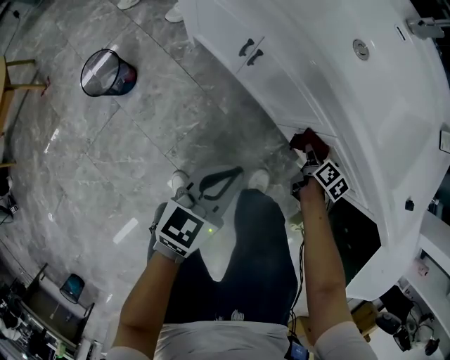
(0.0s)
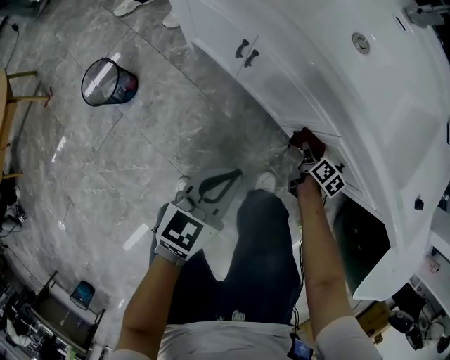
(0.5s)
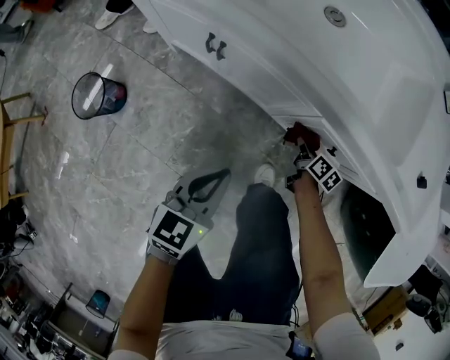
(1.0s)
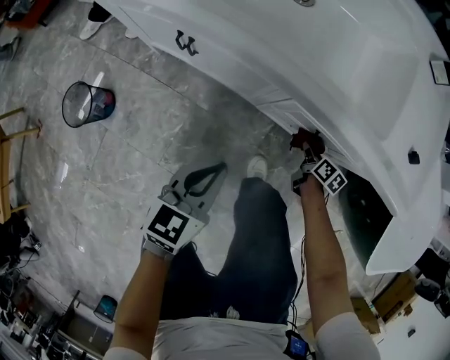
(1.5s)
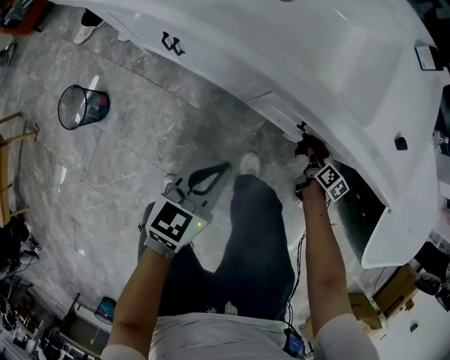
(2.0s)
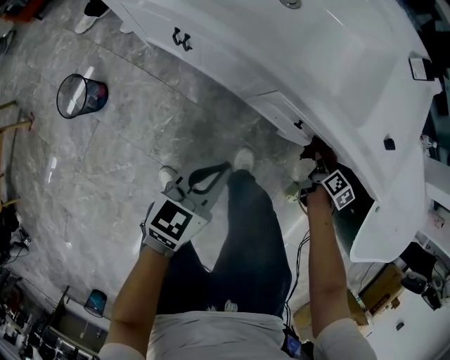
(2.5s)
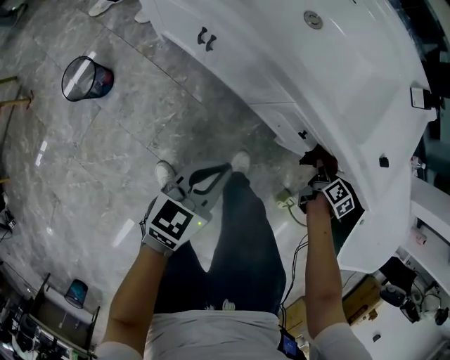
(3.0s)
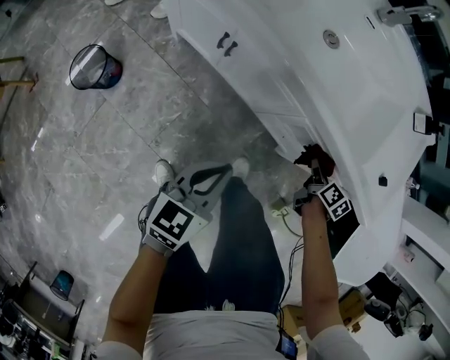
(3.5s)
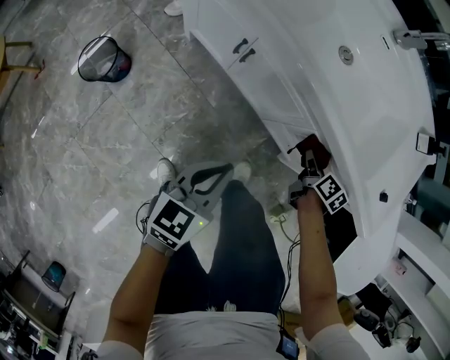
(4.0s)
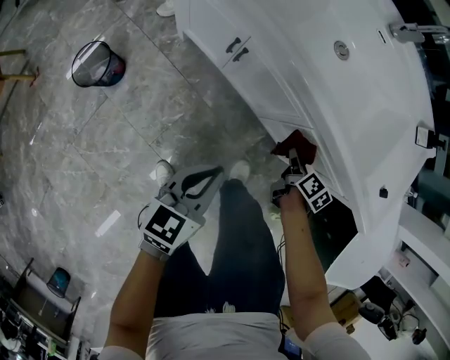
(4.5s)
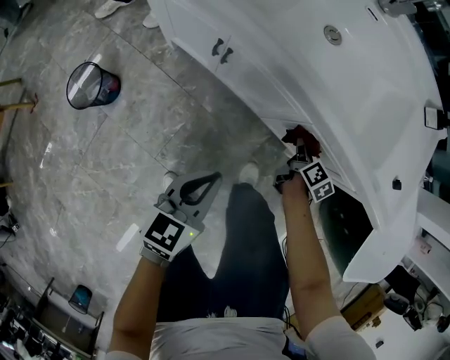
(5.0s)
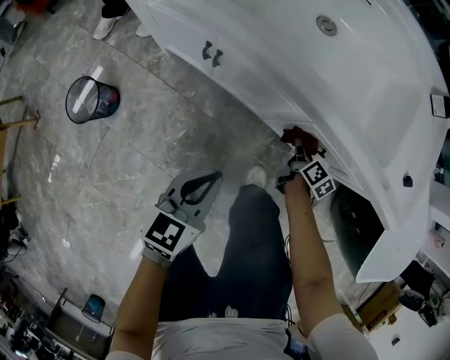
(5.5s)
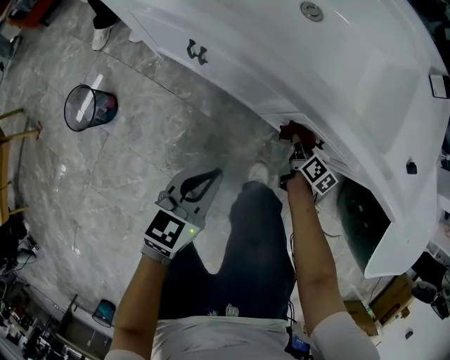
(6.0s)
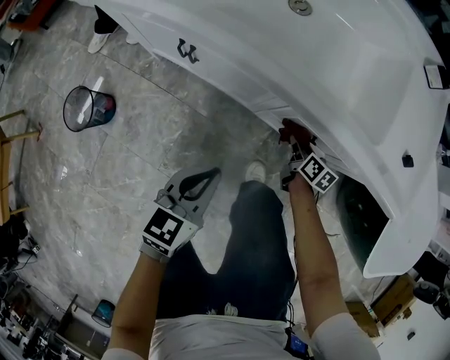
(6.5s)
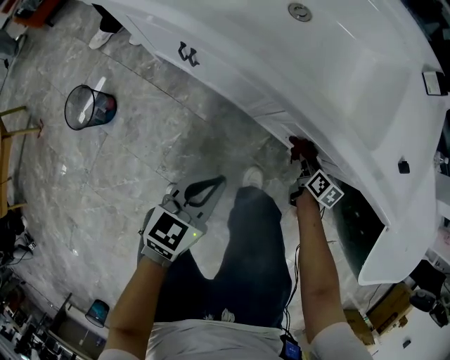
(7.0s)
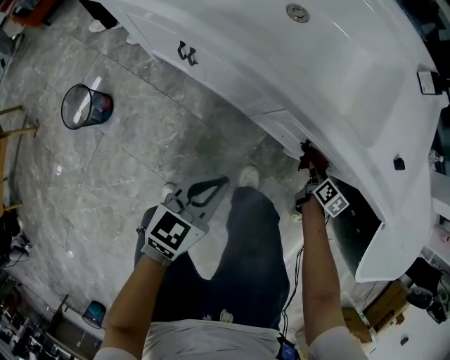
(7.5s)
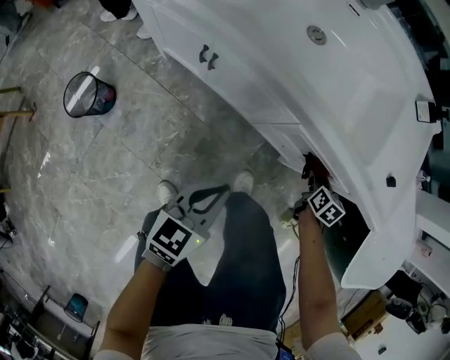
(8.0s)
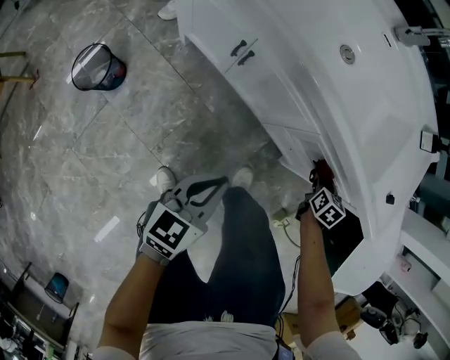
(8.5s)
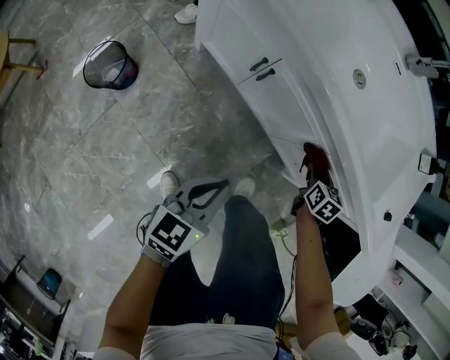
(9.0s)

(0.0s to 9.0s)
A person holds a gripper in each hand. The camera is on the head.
0.0s - 2.0s: The right gripper moves to the right, about 20 cm; the left gripper goes about 10 cm to the right.
2.0s - 4.5s: The left gripper is displaced to the left by roughly 10 cm, while the right gripper is displaced to the left and upward by some 25 cm.
4.5s - 7.0s: The left gripper travels to the right by approximately 10 cm, while the right gripper heads to the right and downward, covering about 15 cm.
7.0s - 9.0s: The right gripper goes some 20 cm to the left and upward, and changes its angle by about 30 degrees, while the left gripper goes about 15 cm to the left and backward.

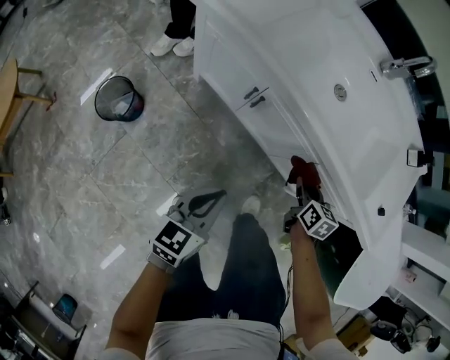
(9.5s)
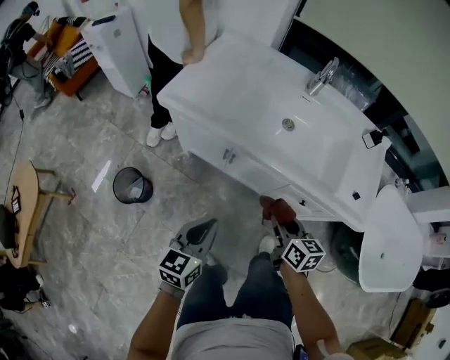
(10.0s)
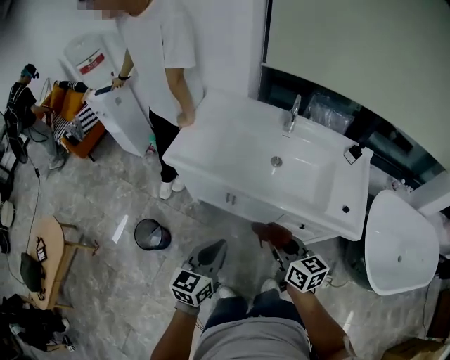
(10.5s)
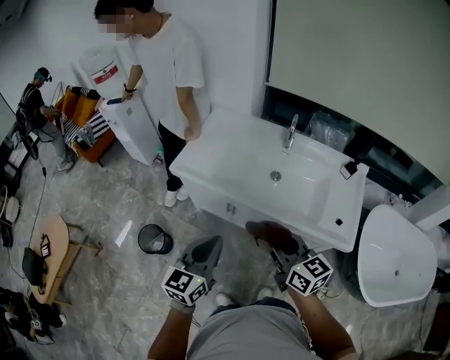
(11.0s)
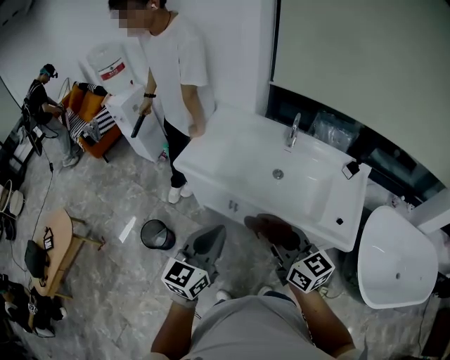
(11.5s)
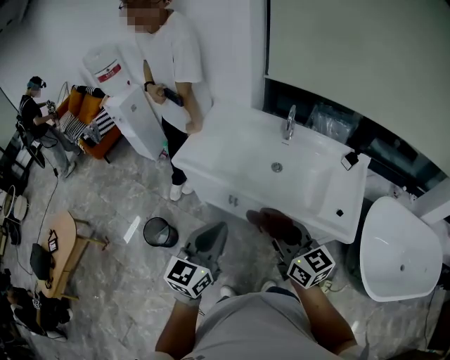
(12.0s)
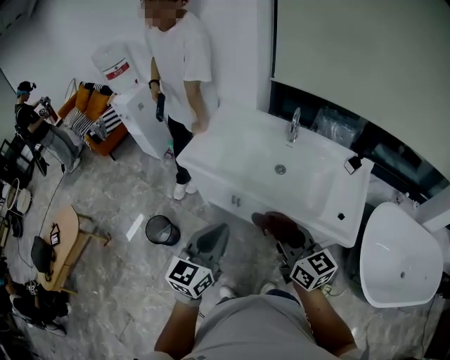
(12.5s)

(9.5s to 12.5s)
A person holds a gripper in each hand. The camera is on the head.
9.5s - 11.0s: Both grippers travel together upward, some 40 cm. The right gripper tilts its fingers roughly 30 degrees upward.
11.0s - 12.5s: The left gripper changes place by roughly 5 cm.

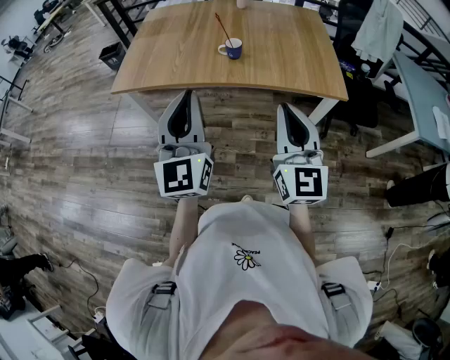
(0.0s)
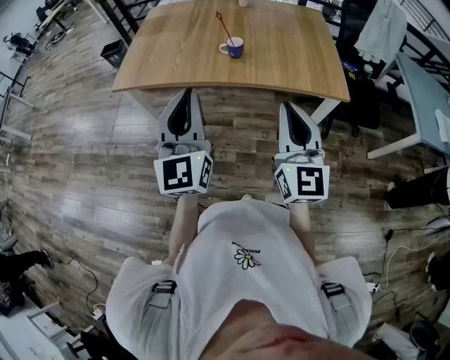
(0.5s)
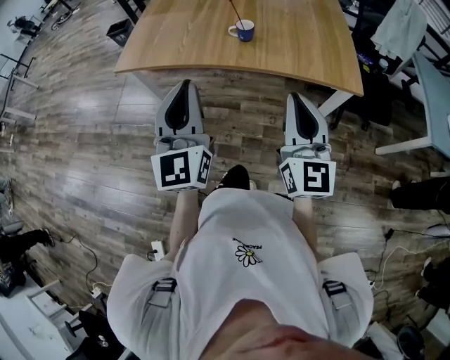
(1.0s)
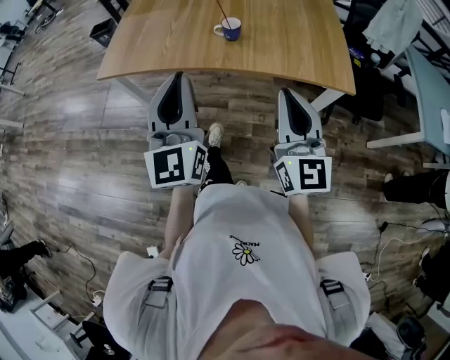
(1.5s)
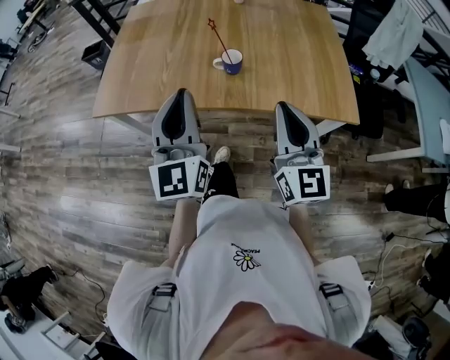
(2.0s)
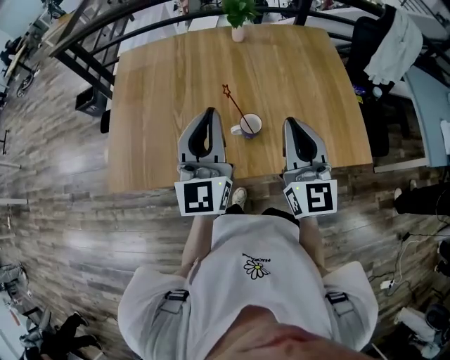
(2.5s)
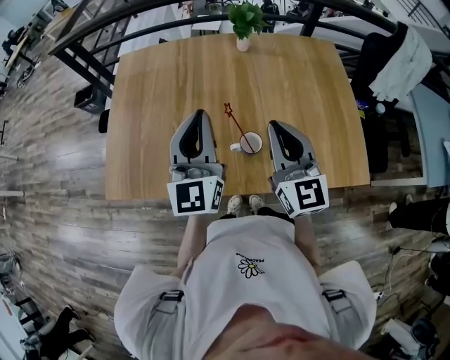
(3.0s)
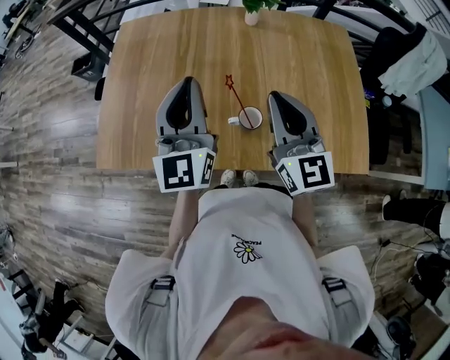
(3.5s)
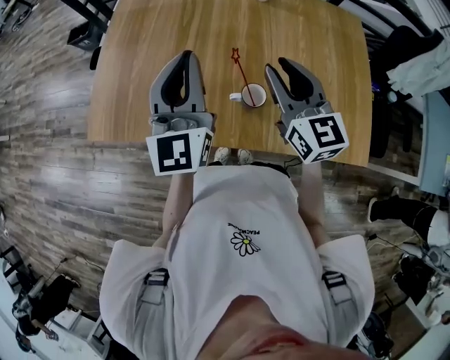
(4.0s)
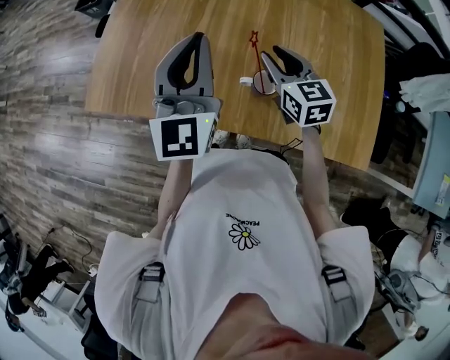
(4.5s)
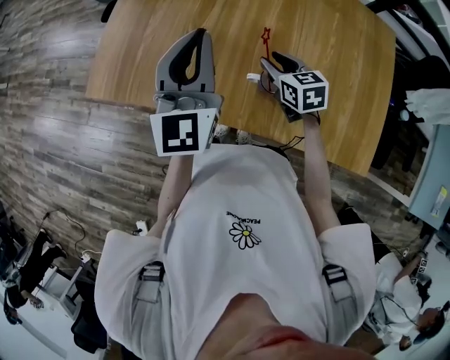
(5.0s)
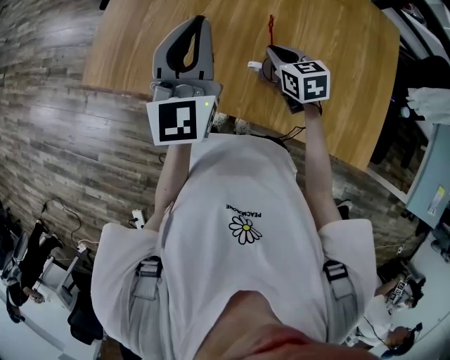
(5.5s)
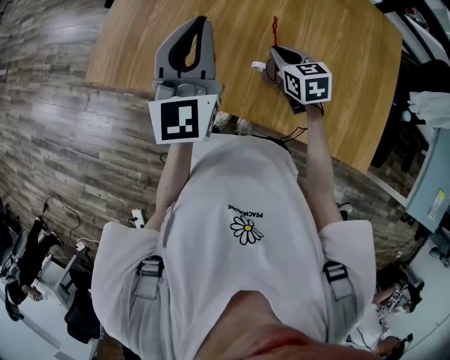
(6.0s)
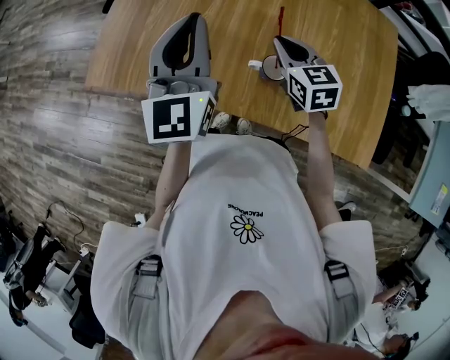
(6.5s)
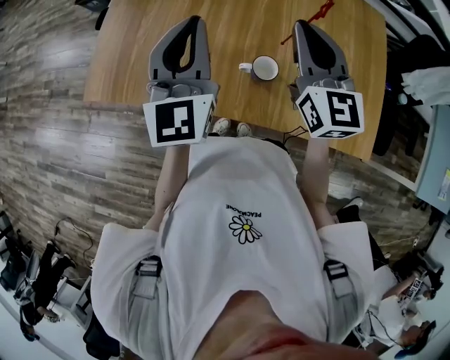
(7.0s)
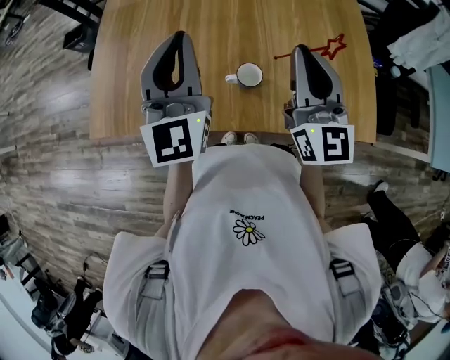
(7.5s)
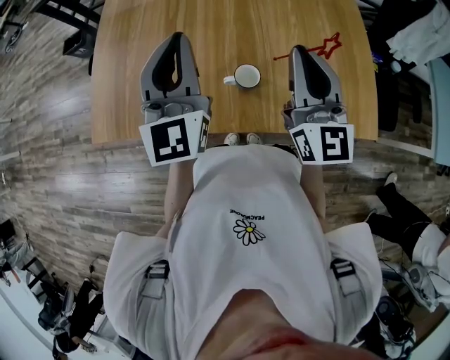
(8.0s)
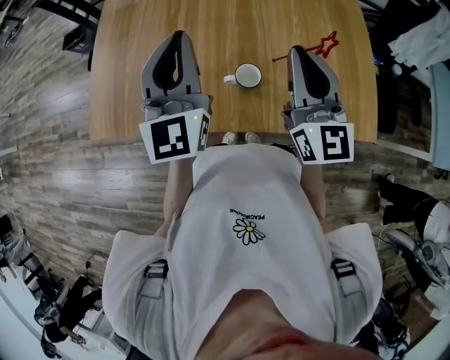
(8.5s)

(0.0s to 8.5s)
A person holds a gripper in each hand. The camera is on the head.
0.0s - 2.0s: The grippers both shift forward by about 20 cm.
2.0s - 4.0s: The two grippers go some 30 cm forward. The right gripper turns by approximately 20 degrees, and opens up.
4.0s - 6.5s: The right gripper travels downward by roughly 15 cm, turns by roughly 20 degrees, and closes its fingers.
6.5s - 8.5s: The left gripper is displaced to the right by about 10 cm; the right gripper travels upward, to the right and backward by approximately 20 cm, and angles its fingers upward, by approximately 40 degrees.

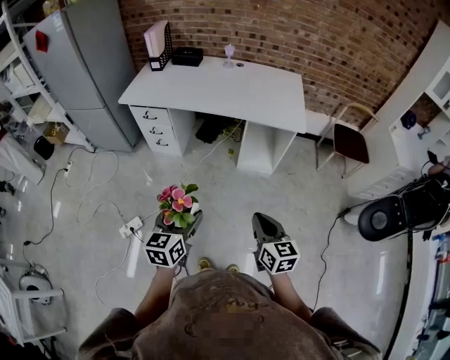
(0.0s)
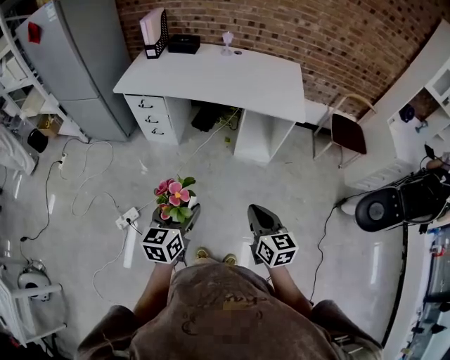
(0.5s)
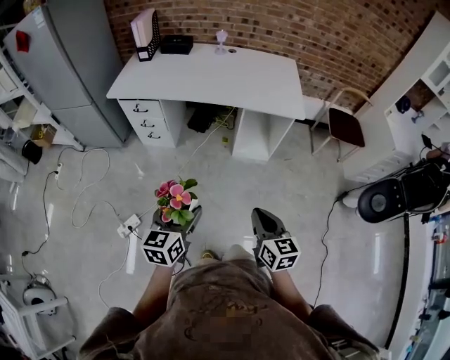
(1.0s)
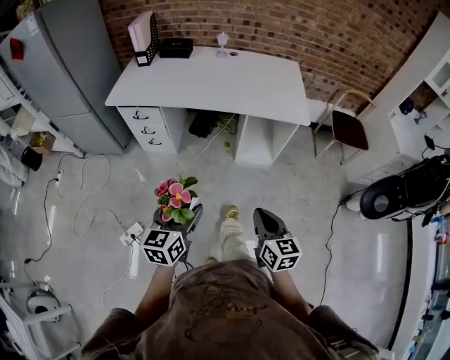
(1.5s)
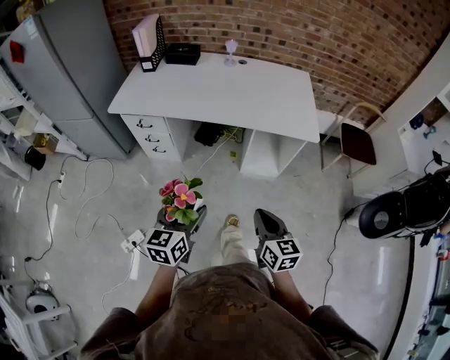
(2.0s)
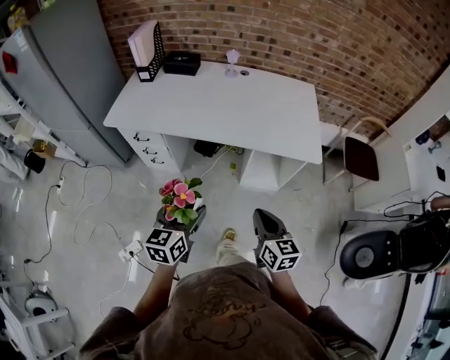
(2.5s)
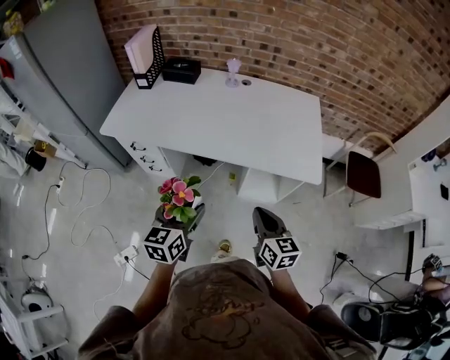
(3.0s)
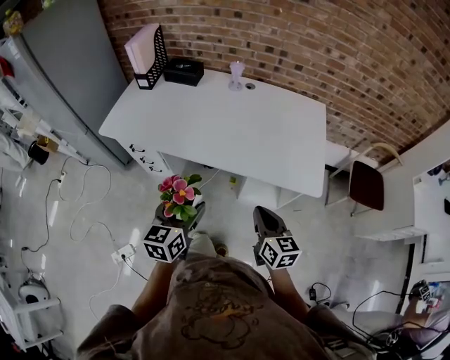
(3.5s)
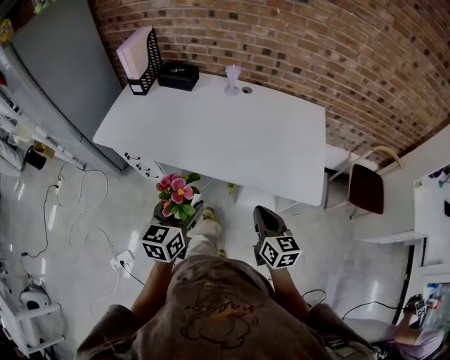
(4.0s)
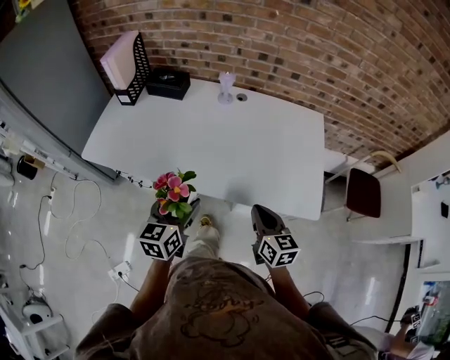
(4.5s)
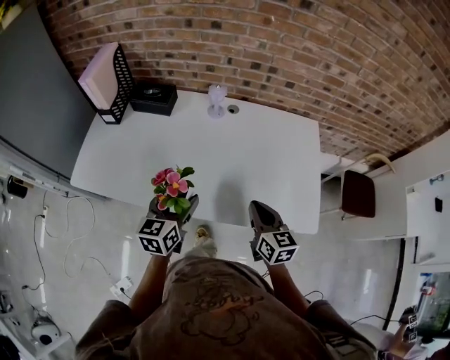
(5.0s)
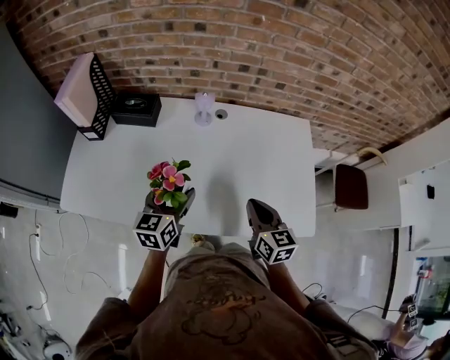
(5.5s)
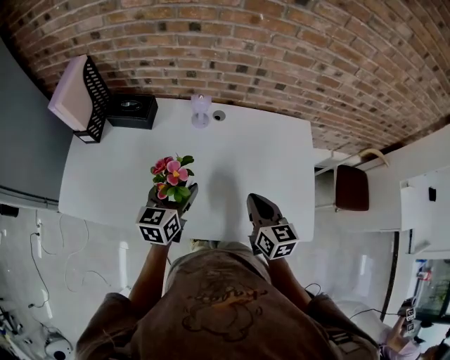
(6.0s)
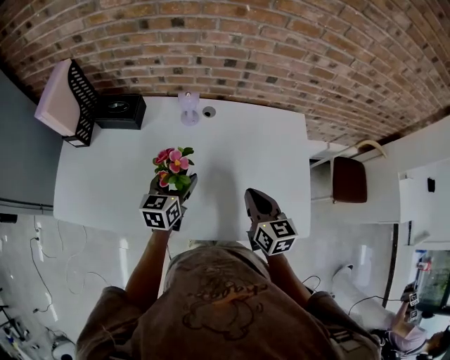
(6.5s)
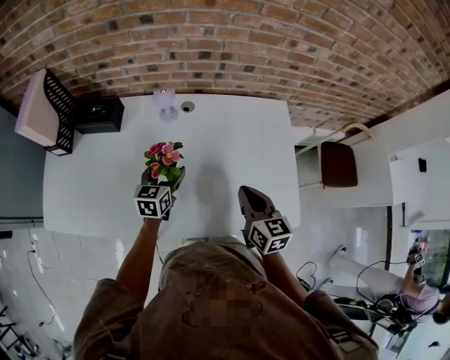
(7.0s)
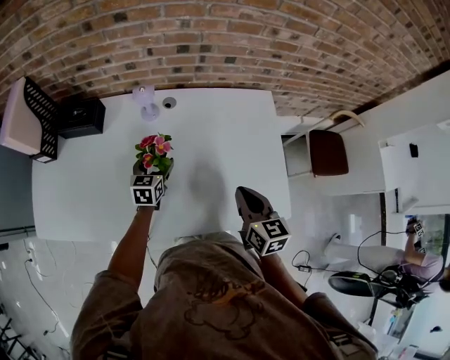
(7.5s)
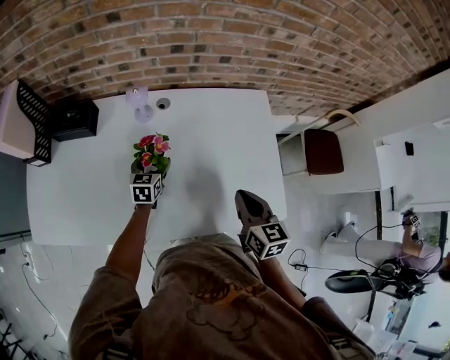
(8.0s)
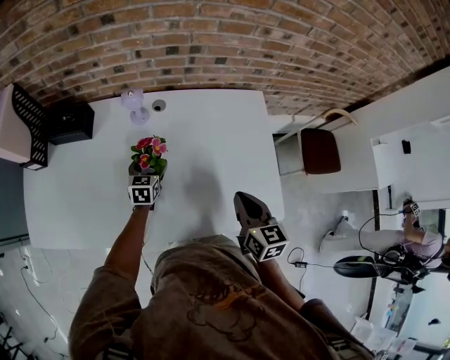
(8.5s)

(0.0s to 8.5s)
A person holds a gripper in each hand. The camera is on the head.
0.0s - 2.0s: The two grippers go some 15 cm forward.
2.0s - 4.0s: The grippers both shift forward by some 30 cm.
4.0s - 6.5s: Both grippers move forward, some 35 cm.
6.5s - 8.5s: The left gripper is displaced downward and forward by about 15 cm. Meanwhile the right gripper is displaced to the right by roughly 10 cm.
